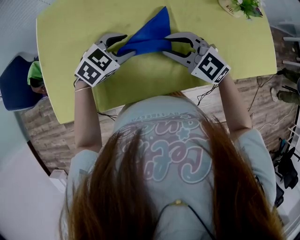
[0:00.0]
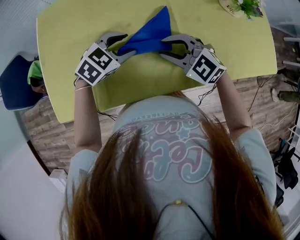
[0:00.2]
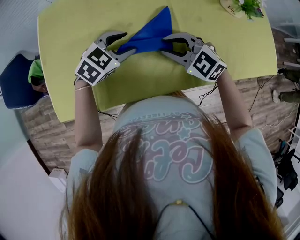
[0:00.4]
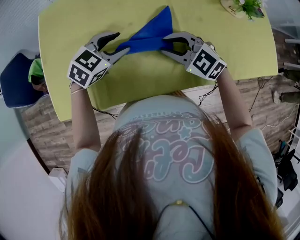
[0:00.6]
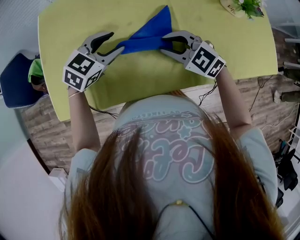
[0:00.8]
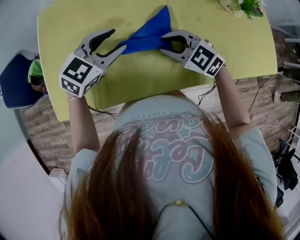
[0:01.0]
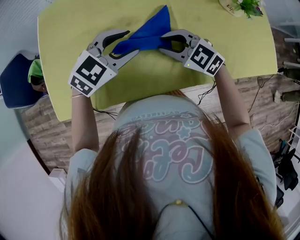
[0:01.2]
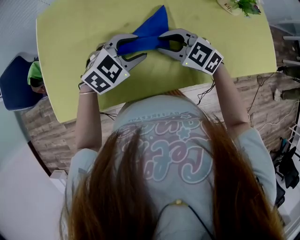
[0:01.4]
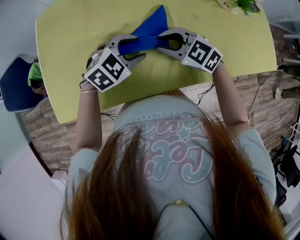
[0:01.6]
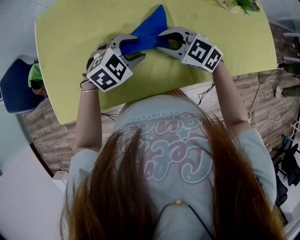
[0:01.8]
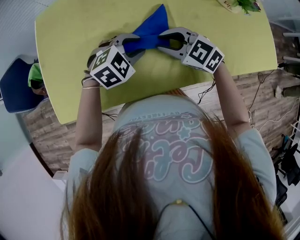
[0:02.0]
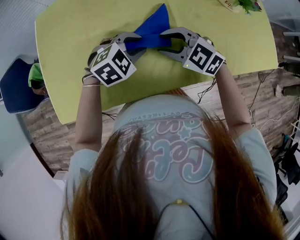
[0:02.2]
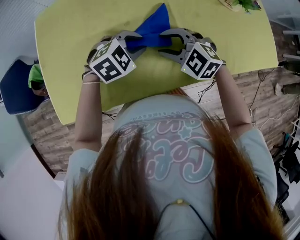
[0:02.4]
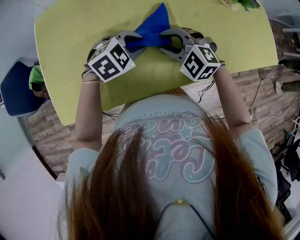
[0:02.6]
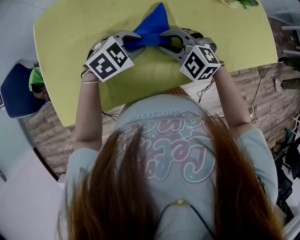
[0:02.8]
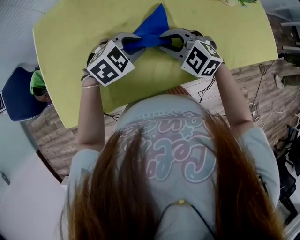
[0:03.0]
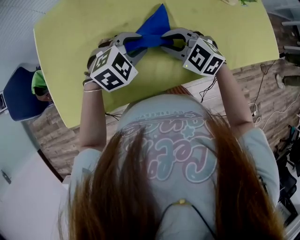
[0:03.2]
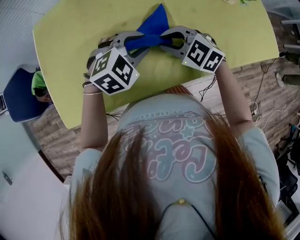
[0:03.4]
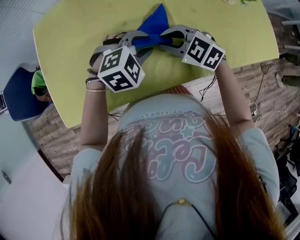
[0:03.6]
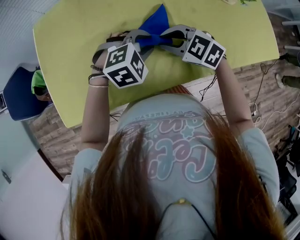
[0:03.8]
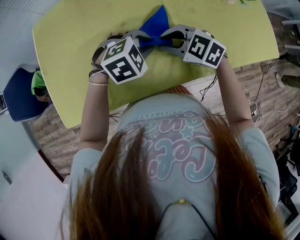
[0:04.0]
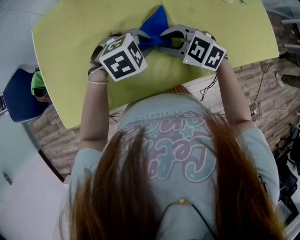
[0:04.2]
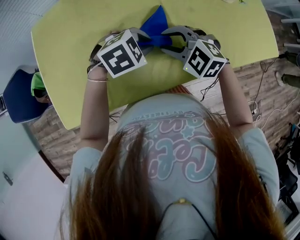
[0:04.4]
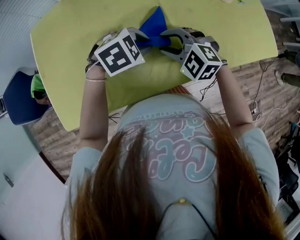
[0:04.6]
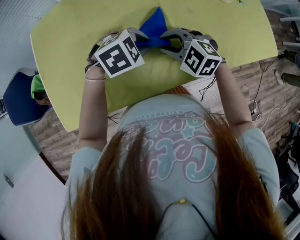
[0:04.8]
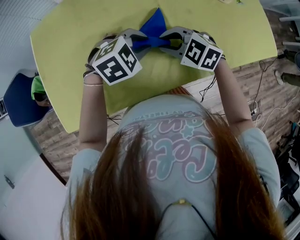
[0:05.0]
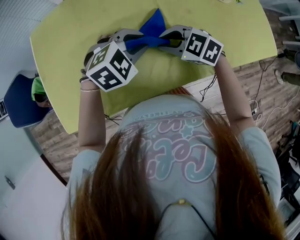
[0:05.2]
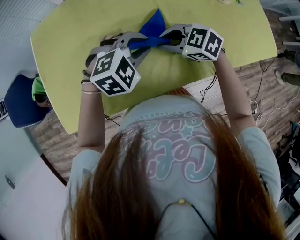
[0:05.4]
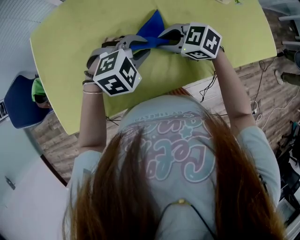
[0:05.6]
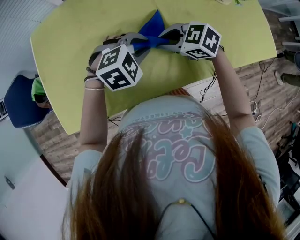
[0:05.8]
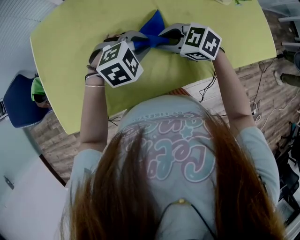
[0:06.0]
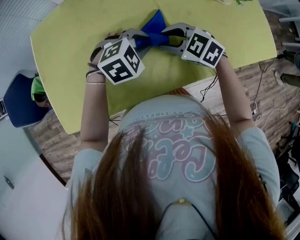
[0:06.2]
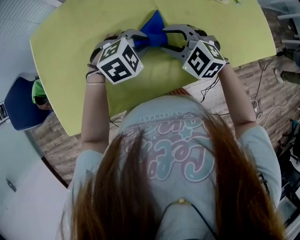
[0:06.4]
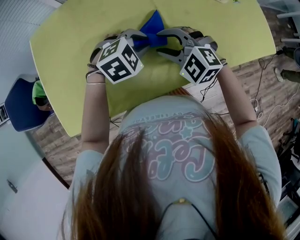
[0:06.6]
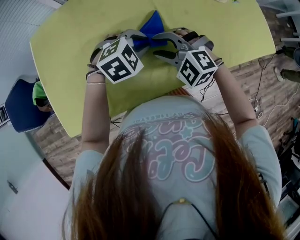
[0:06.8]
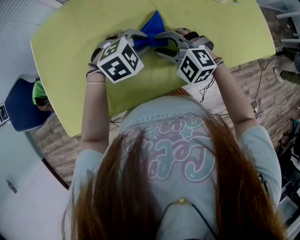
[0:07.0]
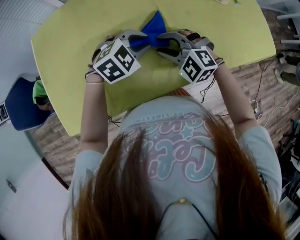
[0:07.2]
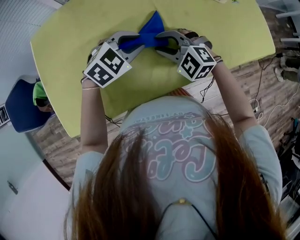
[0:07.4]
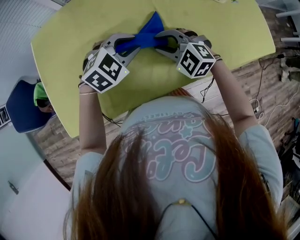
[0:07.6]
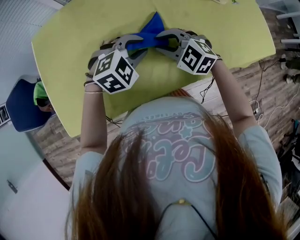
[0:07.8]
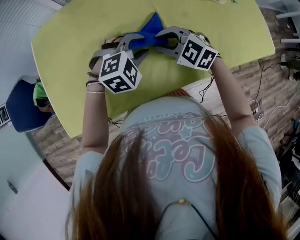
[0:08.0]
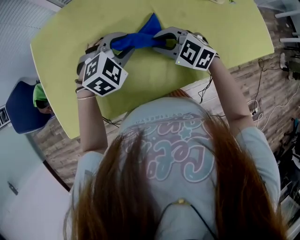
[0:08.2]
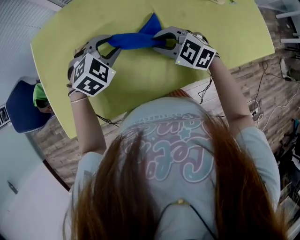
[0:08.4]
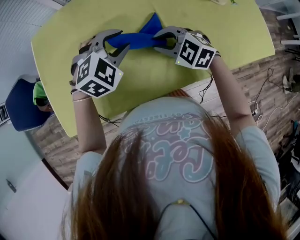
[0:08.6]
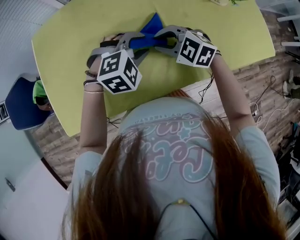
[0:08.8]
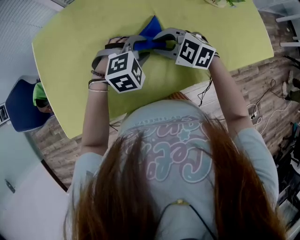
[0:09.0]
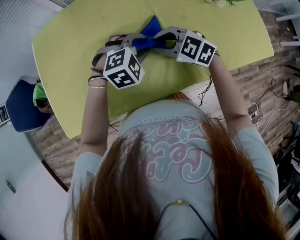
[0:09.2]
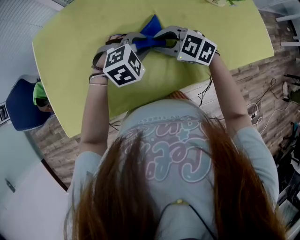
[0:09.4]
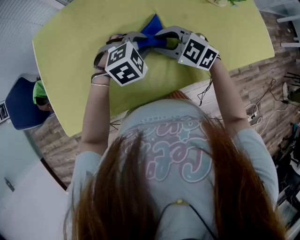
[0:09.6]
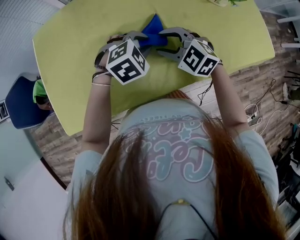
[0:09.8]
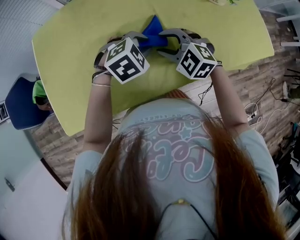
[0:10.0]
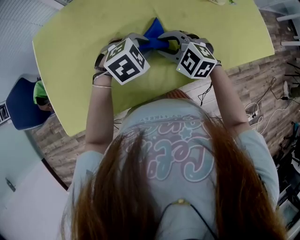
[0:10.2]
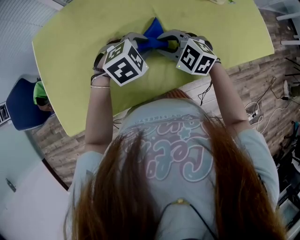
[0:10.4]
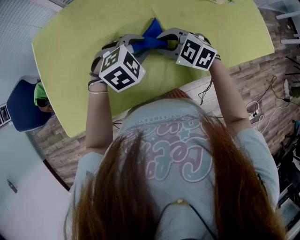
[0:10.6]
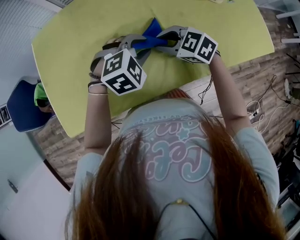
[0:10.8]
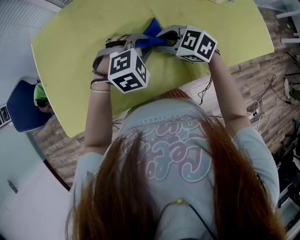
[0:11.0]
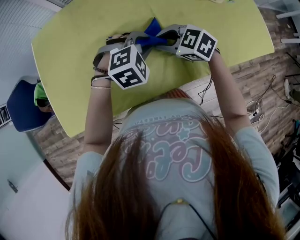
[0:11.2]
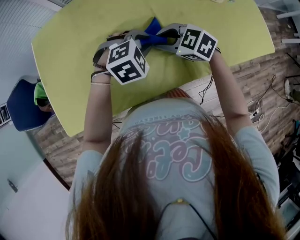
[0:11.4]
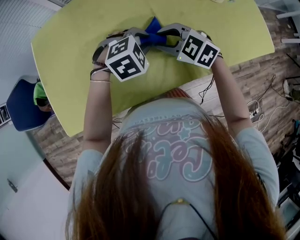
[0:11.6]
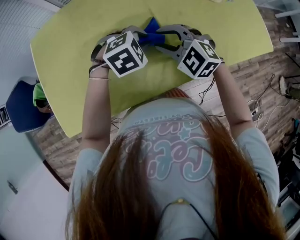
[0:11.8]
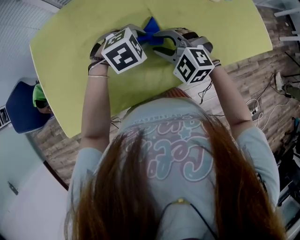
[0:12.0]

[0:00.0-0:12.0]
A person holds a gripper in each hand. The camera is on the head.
0:01.6 to 0:03.0: The left gripper closes its fingers.
0:03.0 to 0:04.4: The grippers move only a little.
0:04.4 to 0:06.0: The right gripper changes its angle by some 30 degrees.
0:06.0 to 0:07.6: The right gripper changes its angle by some 30 degrees.
0:09.0 to 0:10.4: The grippers stay close to where they were, moving slightly.
0:10.4 to 0:12.0: The grippers stay close to where they were, moving slightly.

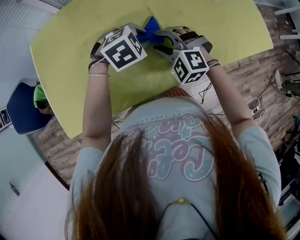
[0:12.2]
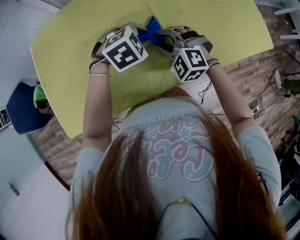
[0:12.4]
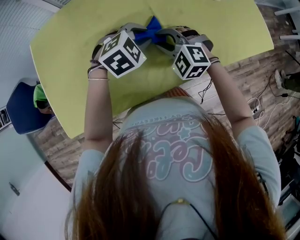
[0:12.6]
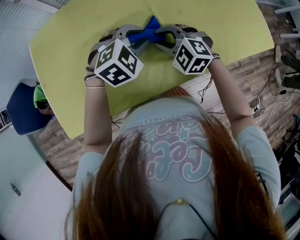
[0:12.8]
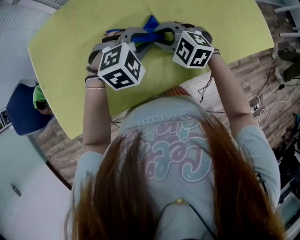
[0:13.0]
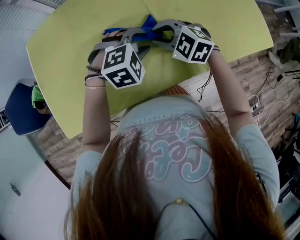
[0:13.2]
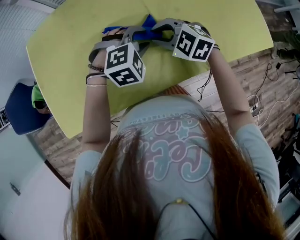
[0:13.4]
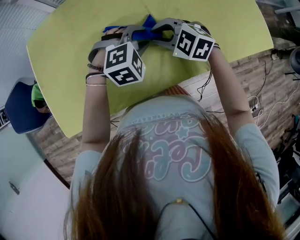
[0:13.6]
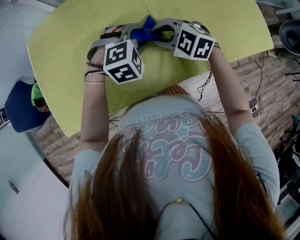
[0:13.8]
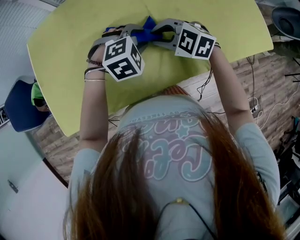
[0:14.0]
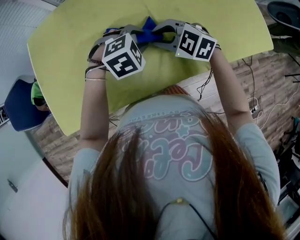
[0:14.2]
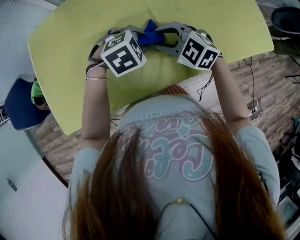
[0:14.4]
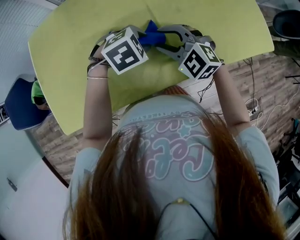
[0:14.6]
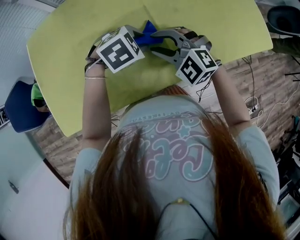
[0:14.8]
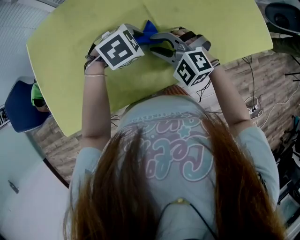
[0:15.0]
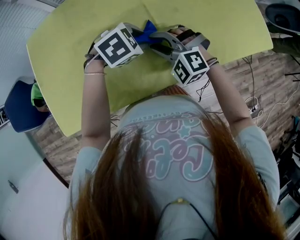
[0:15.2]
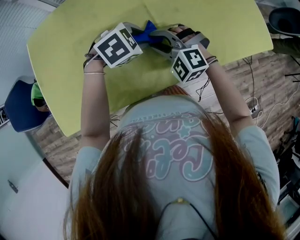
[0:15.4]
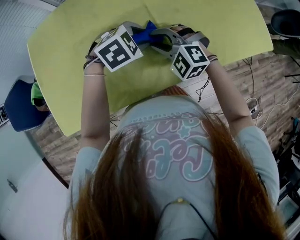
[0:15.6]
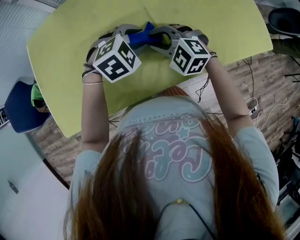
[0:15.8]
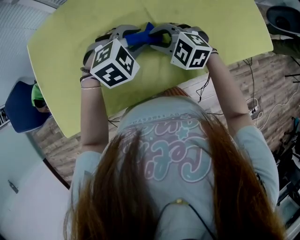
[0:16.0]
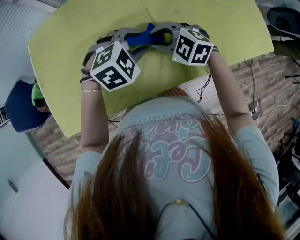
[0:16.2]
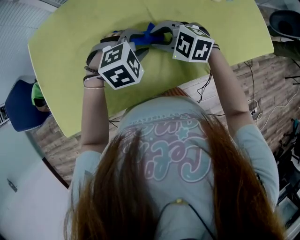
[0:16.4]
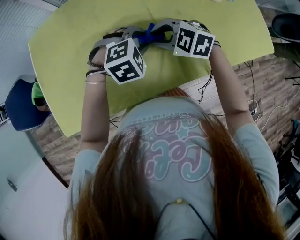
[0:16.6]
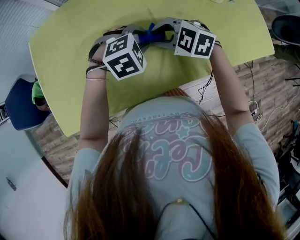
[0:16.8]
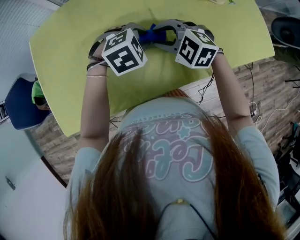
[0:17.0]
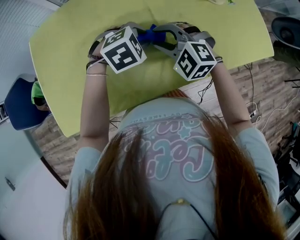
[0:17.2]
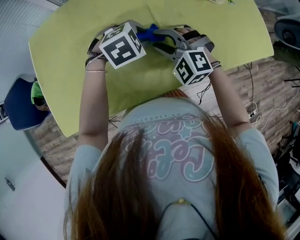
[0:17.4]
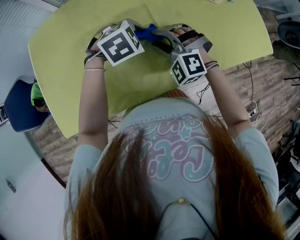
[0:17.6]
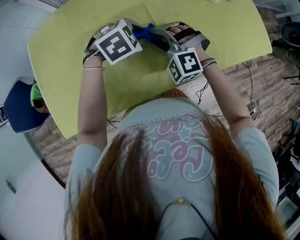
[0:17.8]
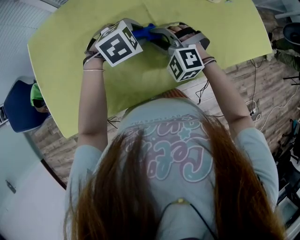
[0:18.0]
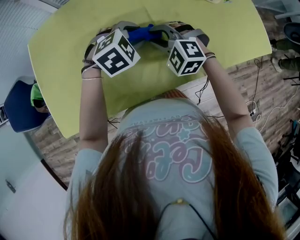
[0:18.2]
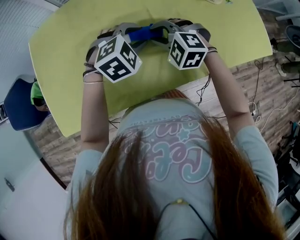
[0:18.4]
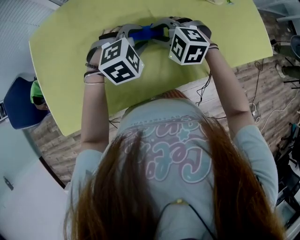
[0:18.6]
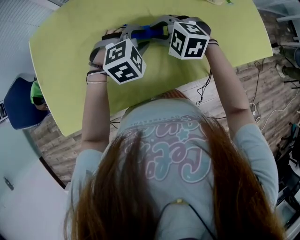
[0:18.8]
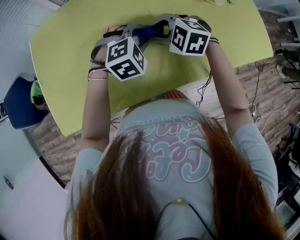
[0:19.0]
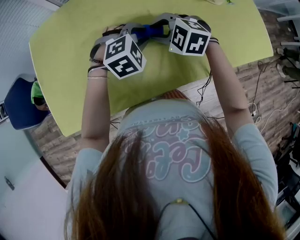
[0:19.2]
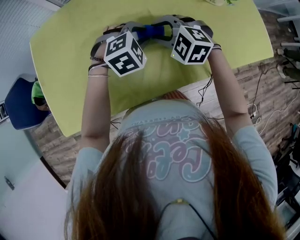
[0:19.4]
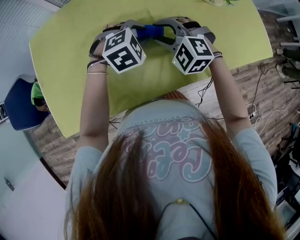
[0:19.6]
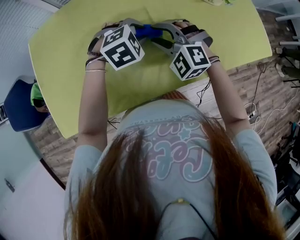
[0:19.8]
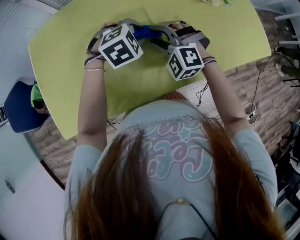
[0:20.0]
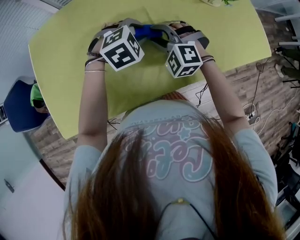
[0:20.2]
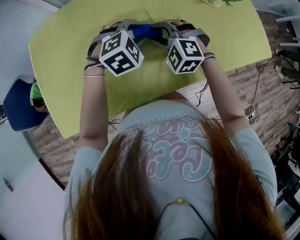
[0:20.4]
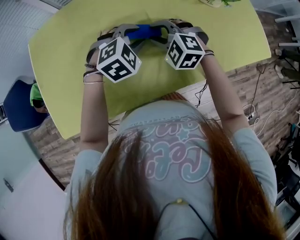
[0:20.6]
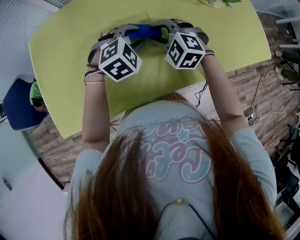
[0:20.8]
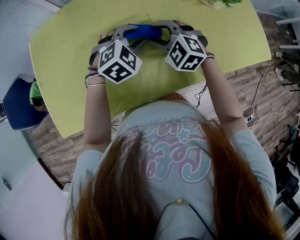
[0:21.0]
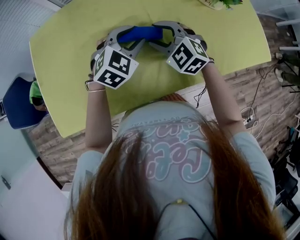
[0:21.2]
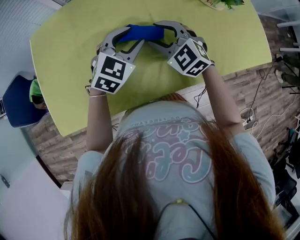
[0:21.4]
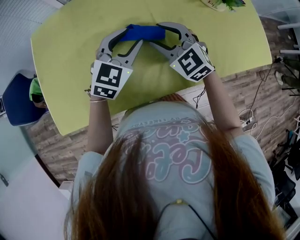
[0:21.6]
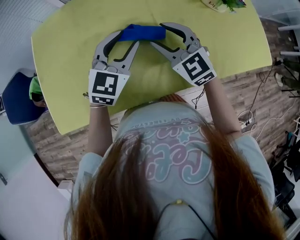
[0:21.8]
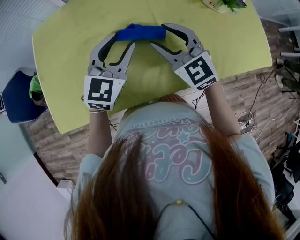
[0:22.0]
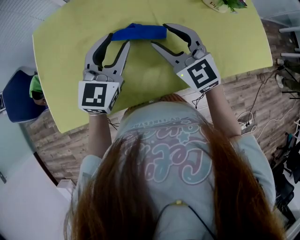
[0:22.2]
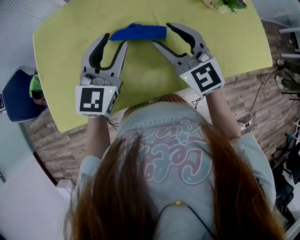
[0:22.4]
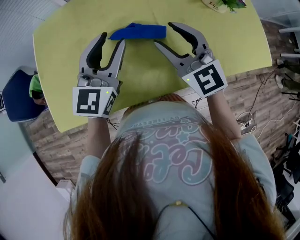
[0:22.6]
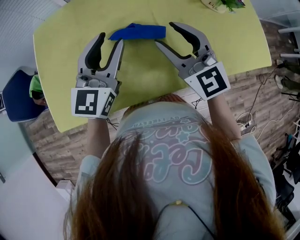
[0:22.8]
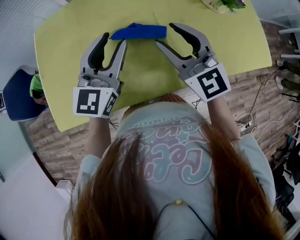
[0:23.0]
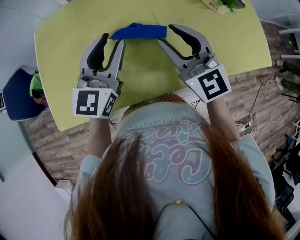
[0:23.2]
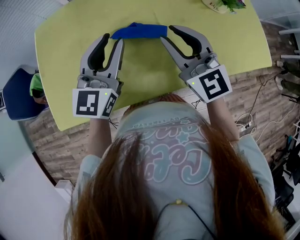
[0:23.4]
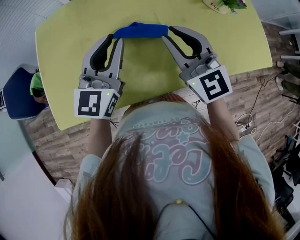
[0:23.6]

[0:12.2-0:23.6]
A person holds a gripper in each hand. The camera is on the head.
0:12.2 to 0:13.6: The right gripper turns by about 30 degrees.
0:13.6 to 0:15.0: The right gripper swivels about 20 degrees. The left gripper swivels approximately 30 degrees.
0:15.0 to 0:16.4: The right gripper changes its angle by about 20 degrees.
0:16.4 to 0:17.8: The right gripper swivels approximately 40 degrees.
0:17.8 to 0:19.4: The right gripper turns by approximately 20 degrees.
0:19.4 to 0:20.8: The grippers make only small movements.
0:20.8 to 0:22.2: The left gripper shifts roughly 15 cm upward and to the left, and tilts its fingers roughly 40 degrees upward. The right gripper moves upward, some 10 cm, and swivels about 40 degrees.
0:22.2 to 0:23.6: The right gripper moves upward, approximately 5 cm, and closes.

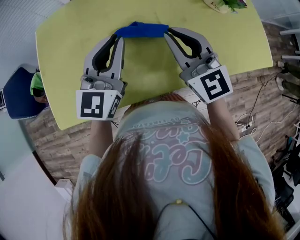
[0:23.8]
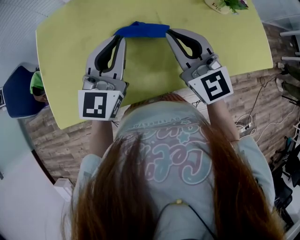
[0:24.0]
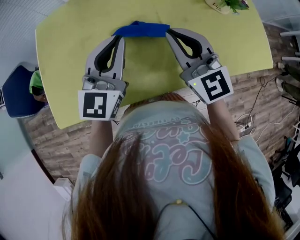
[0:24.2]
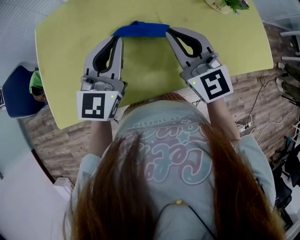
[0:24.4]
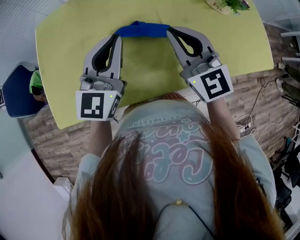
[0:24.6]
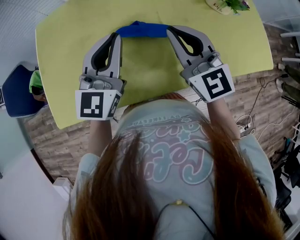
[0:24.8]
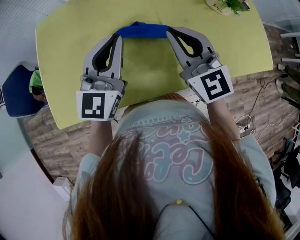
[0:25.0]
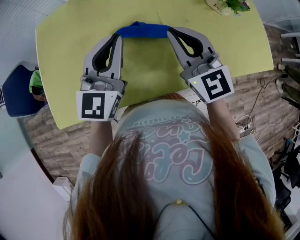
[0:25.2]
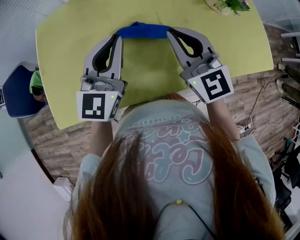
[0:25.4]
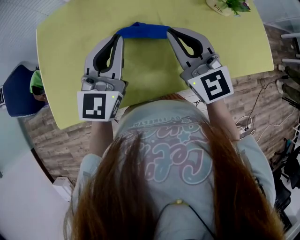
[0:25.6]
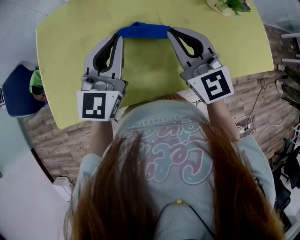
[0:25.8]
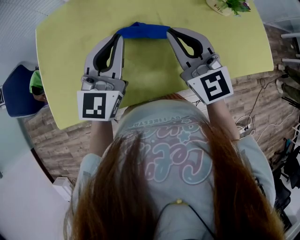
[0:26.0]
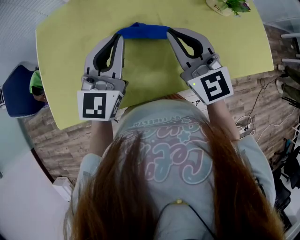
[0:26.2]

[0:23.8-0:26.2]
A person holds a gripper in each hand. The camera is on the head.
0:23.8 to 0:26.2: Both grippers stay about where they are.
